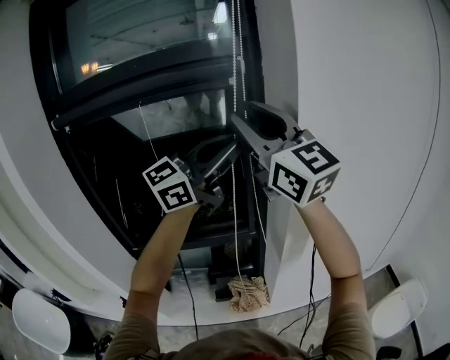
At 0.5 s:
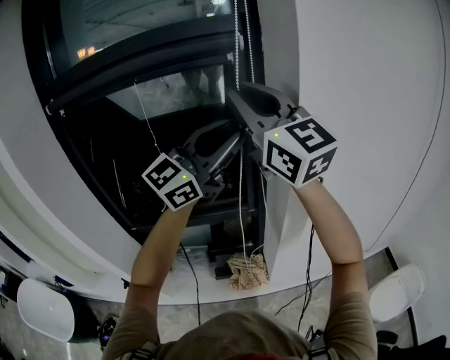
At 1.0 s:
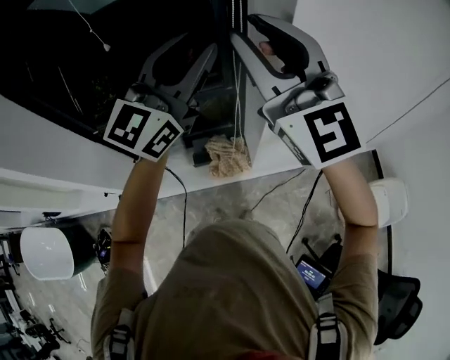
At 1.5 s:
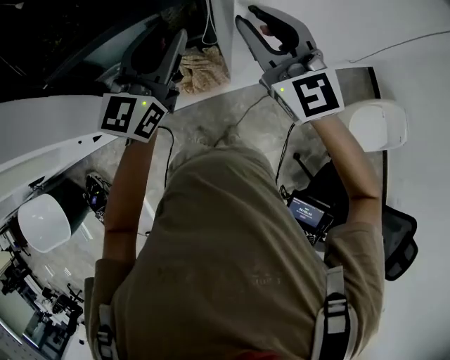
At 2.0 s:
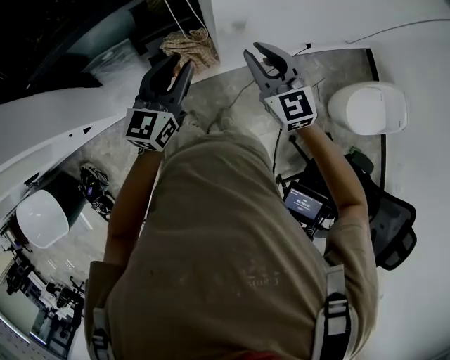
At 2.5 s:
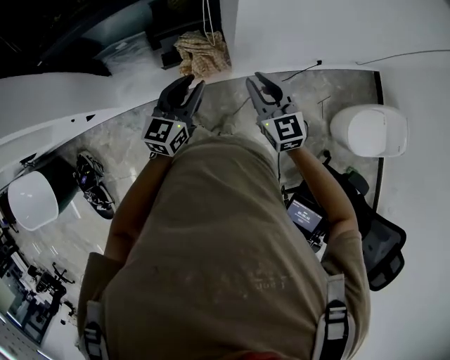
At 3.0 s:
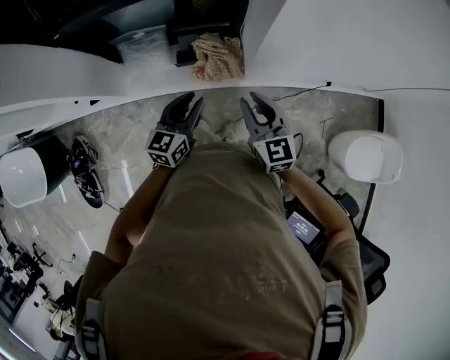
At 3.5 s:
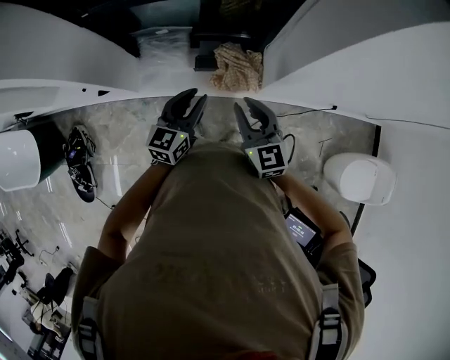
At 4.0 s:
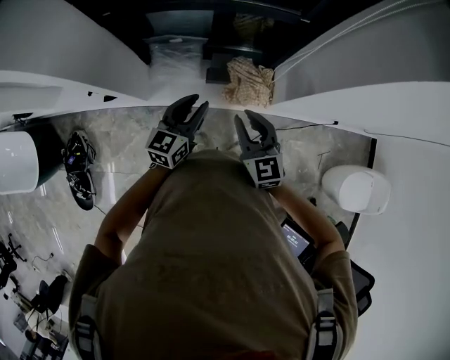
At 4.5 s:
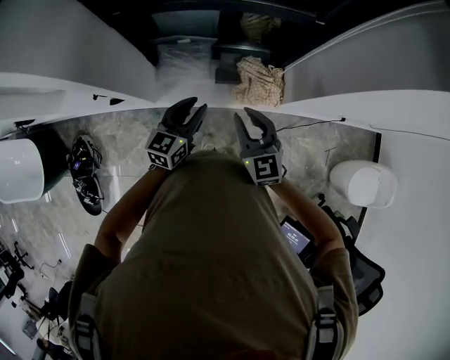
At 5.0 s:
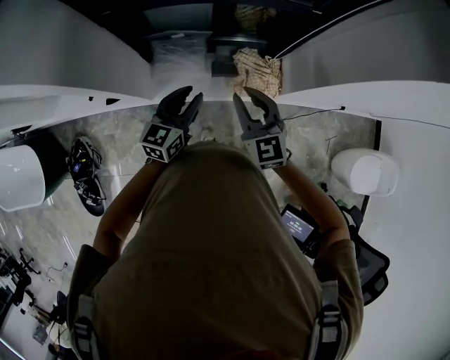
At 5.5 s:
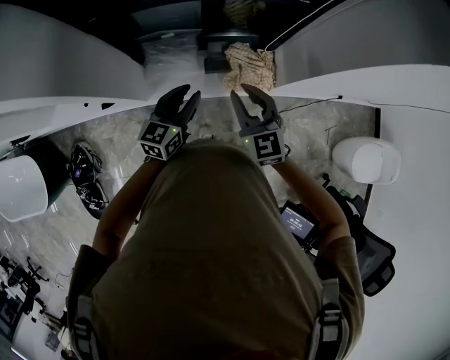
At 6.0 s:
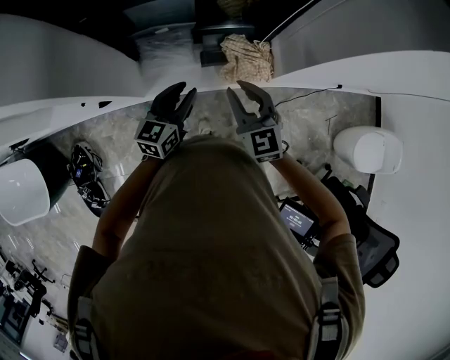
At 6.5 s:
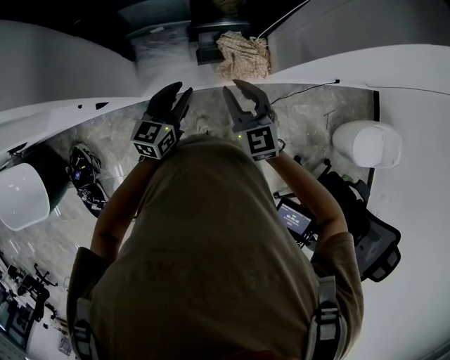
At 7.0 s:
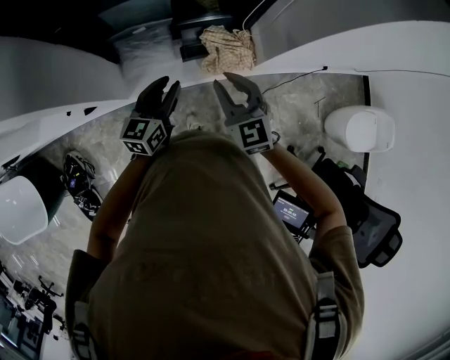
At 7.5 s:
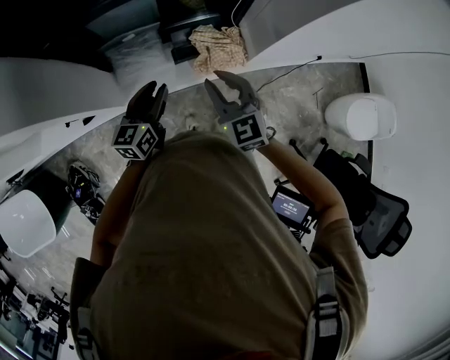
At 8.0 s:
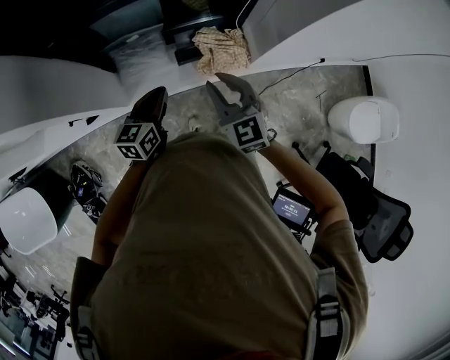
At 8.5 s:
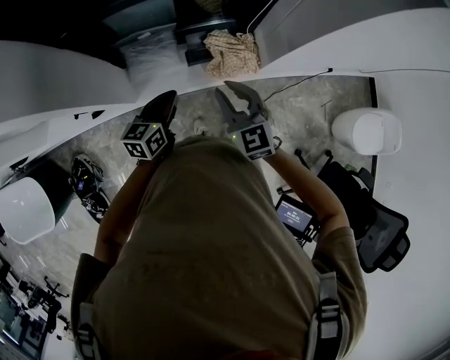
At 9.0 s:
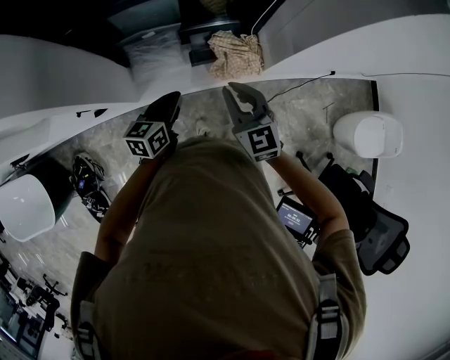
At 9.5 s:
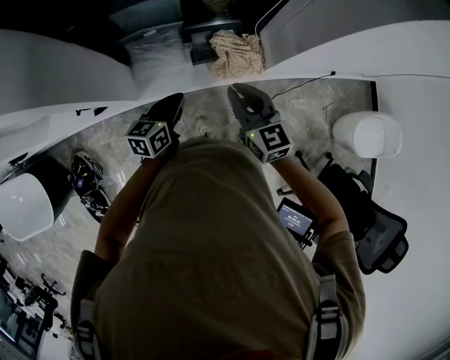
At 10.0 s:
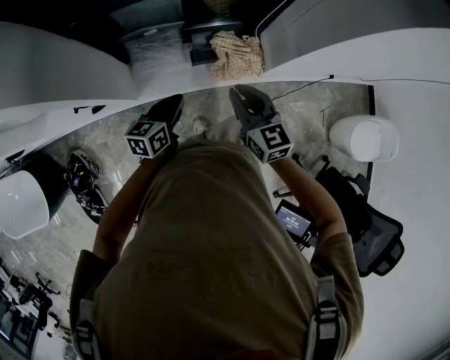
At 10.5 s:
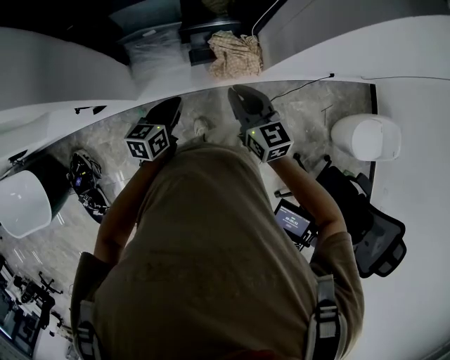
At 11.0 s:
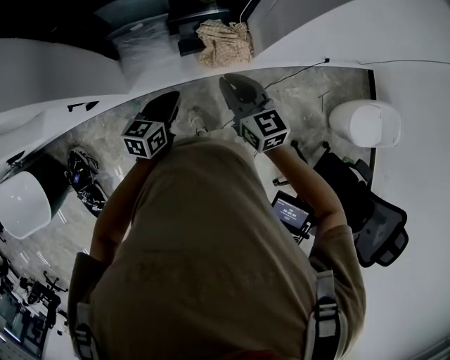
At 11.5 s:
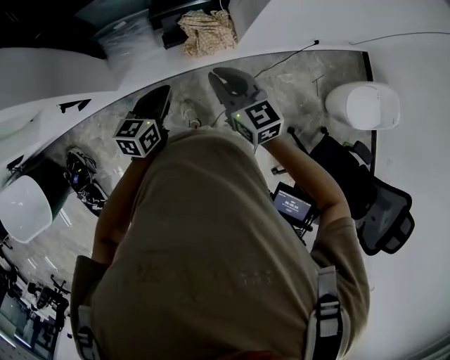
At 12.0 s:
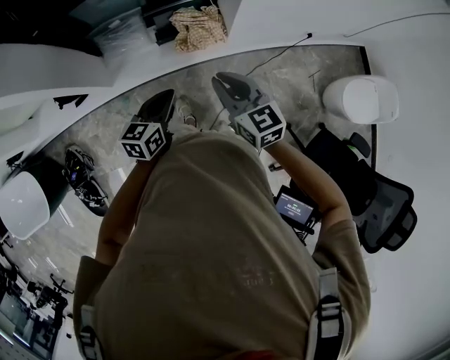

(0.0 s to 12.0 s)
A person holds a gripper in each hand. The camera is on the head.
0.0 s - 2.0 s: Both grippers travel together downward, about 60 cm. The right gripper points its fingers approximately 40 degrees further downward. Meanwhile the left gripper angles its fingers downward, by roughly 30 degrees, and opens up.
2.0 s - 4.0 s: Both grippers travel together to the left, roughly 30 cm.
4.0 s - 6.0 s: The grippers both shift to the left by about 5 cm.
6.0 s - 8.0 s: The left gripper closes up.
8.0 s - 10.0 s: The grippers stay close to where they were, moving slightly.
10.0 s - 12.0 s: The two grippers go about 20 cm to the right and backward.

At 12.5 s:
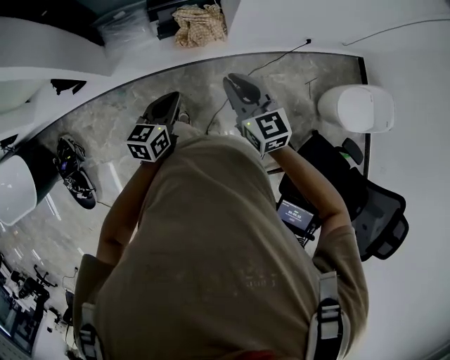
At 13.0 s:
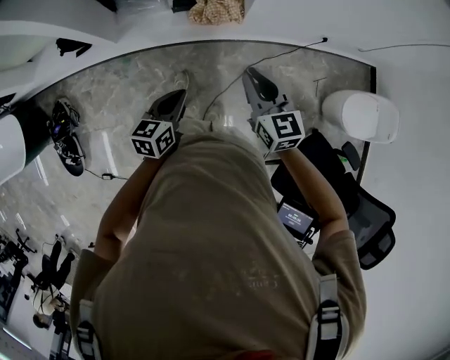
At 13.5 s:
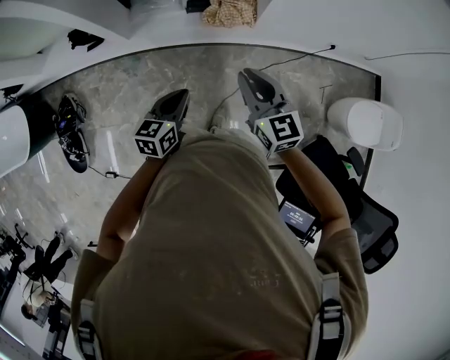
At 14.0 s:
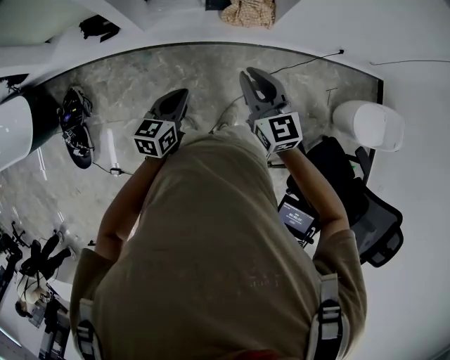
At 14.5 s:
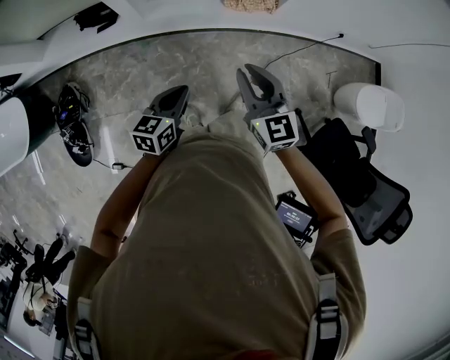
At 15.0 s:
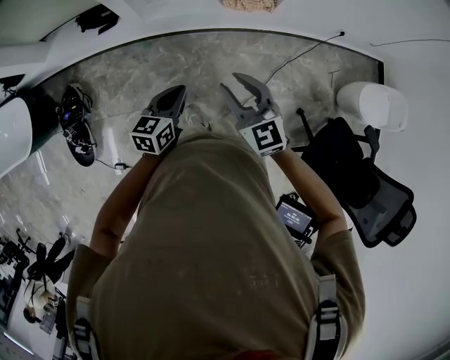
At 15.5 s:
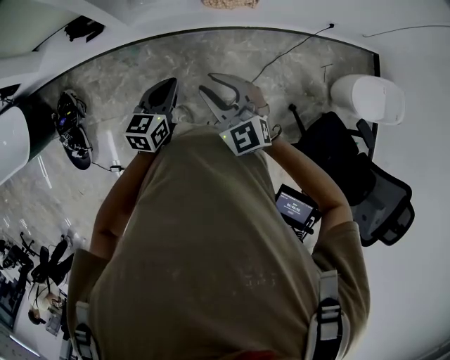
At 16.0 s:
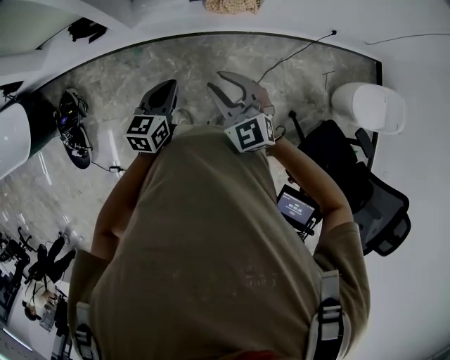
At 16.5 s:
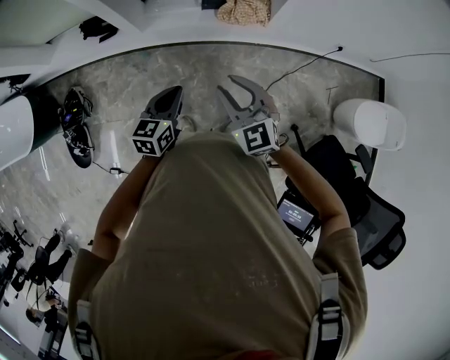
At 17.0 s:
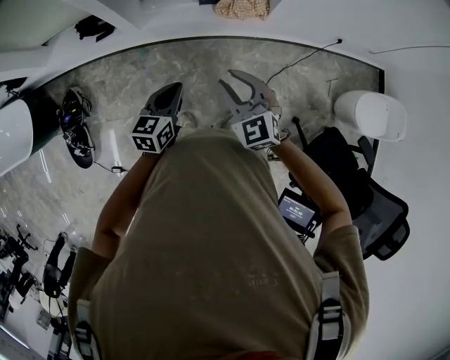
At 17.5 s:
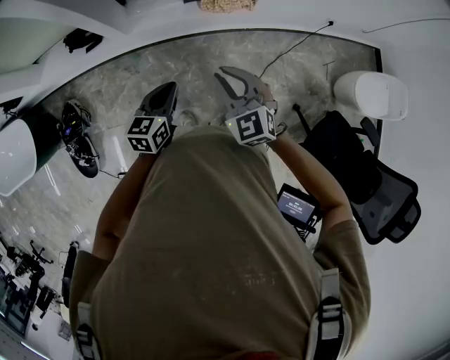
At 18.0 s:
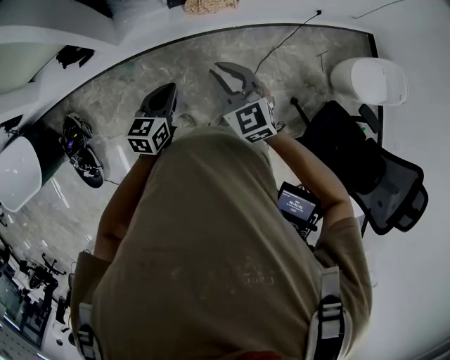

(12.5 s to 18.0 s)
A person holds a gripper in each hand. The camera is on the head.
12.5 s - 14.5 s: The two grippers go about 30 cm to the left and backward.
14.5 s - 16.0 s: The two grippers go roughly 10 cm to the right. The right gripper swivels about 20 degrees.
16.0 s - 18.0 s: The grippers move only a little.

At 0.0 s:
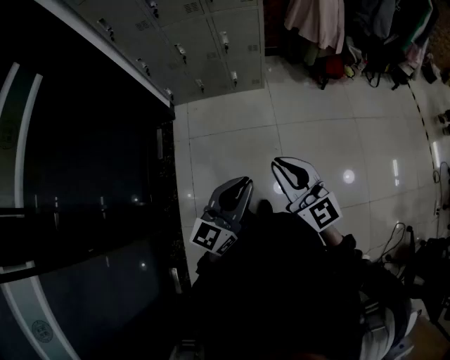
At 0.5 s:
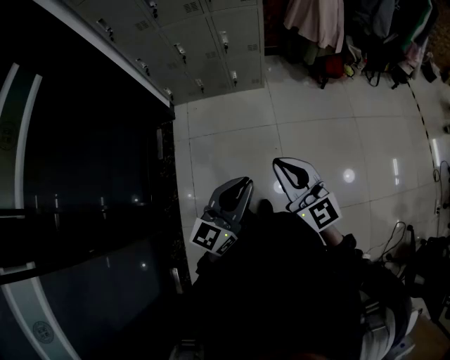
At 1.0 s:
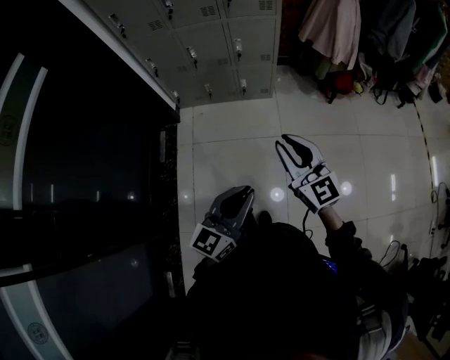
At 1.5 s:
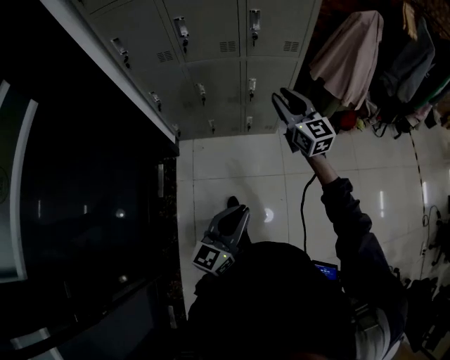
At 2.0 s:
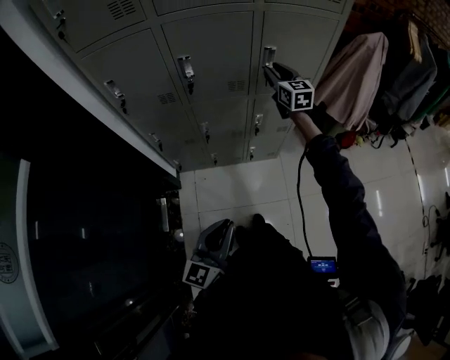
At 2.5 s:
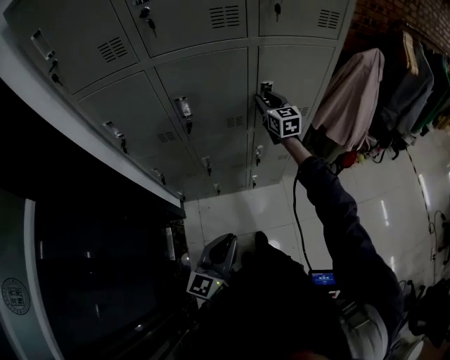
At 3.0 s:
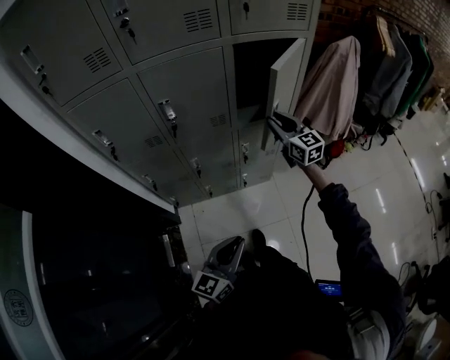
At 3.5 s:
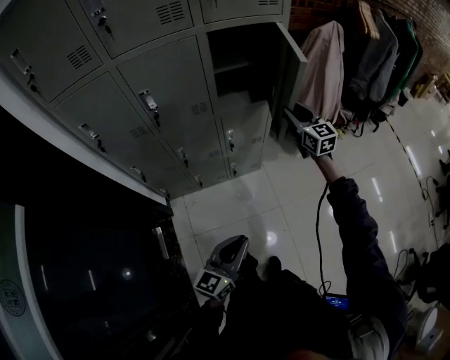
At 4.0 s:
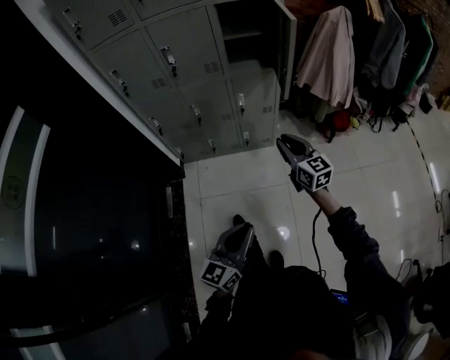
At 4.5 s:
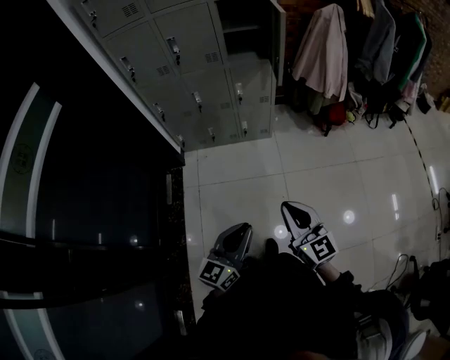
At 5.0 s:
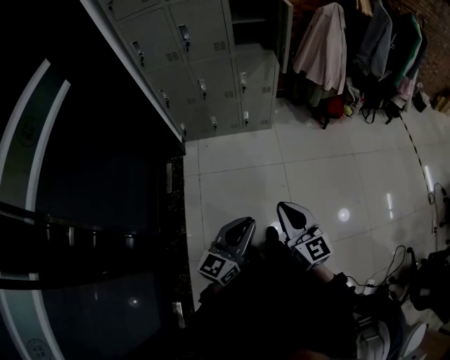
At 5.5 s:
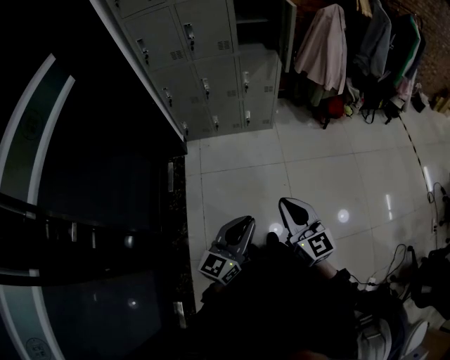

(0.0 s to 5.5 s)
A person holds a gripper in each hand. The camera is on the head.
0.0 s - 2.0 s: The two grippers travel together, forward, some 60 cm. The right gripper swivels some 20 degrees, and opens.
2.0 s - 3.5 s: The right gripper is displaced to the right and backward by about 25 cm. The left gripper heads to the right, covering some 10 cm.
3.5 s - 5.5 s: The pair of grippers is taken backward, about 60 cm. The right gripper closes.

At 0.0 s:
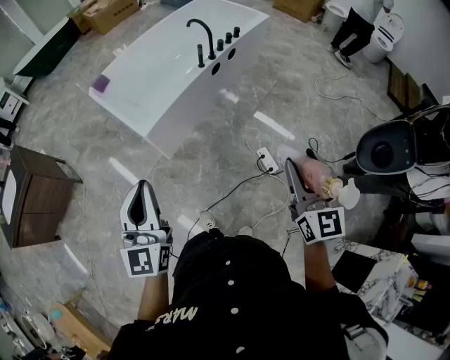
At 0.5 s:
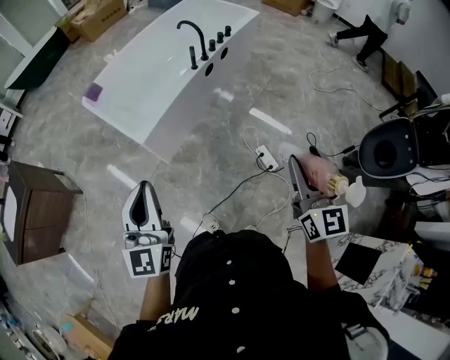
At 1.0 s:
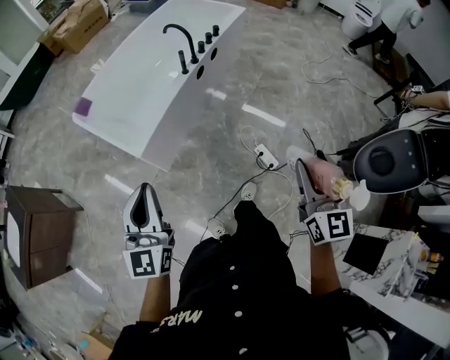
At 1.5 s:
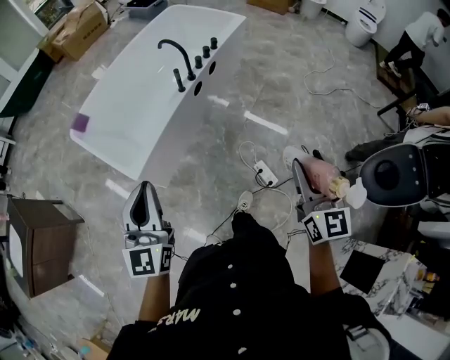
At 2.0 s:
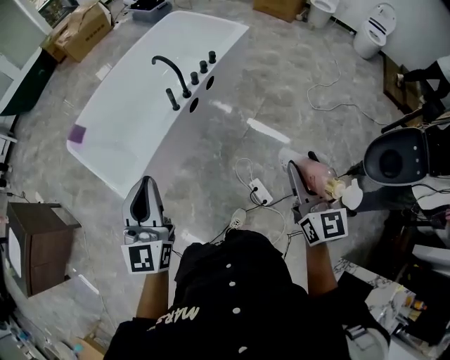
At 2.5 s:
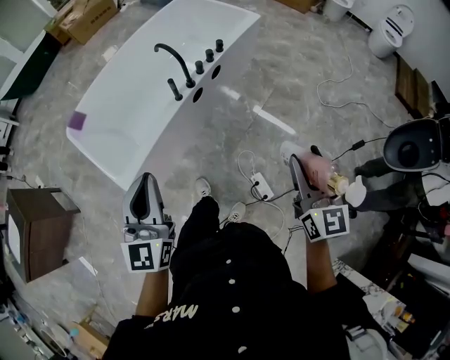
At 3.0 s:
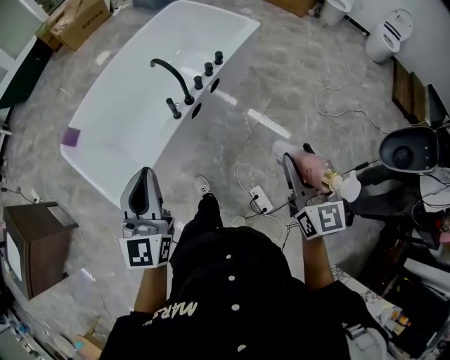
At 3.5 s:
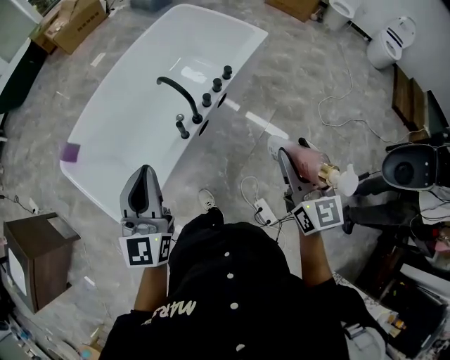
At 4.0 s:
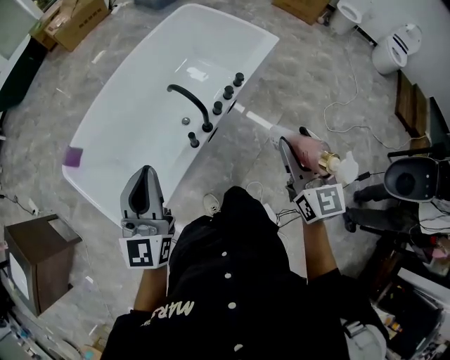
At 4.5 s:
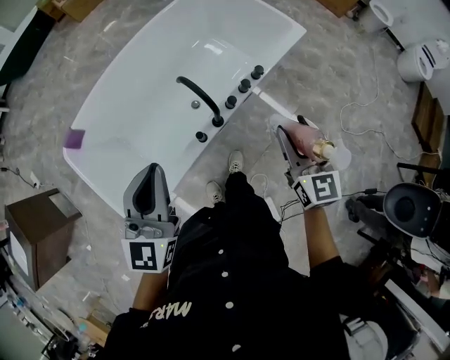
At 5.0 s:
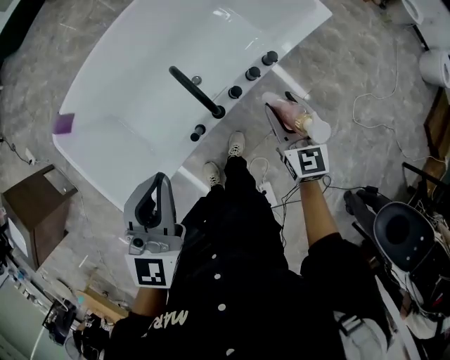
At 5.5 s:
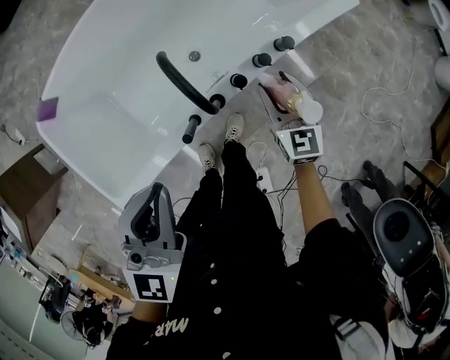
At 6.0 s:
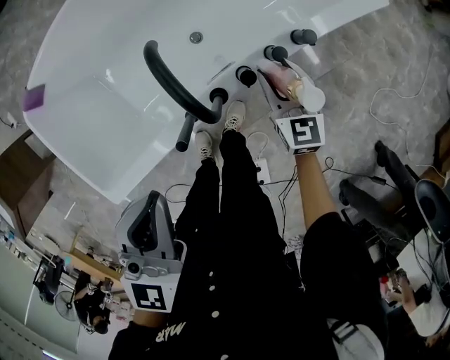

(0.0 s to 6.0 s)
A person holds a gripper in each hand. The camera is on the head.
0.0 s - 2.0 s: The grippers both shift forward by approximately 30 cm.
2.0 s - 4.0 s: Both grippers travel together forward, approximately 35 cm.
4.0 s - 6.0 s: The right gripper shifts approximately 50 cm downward and forward, and rotates approximately 30 degrees; the left gripper is displaced downward, forward and to the right by some 25 cm, and changes its angle by some 20 degrees.
